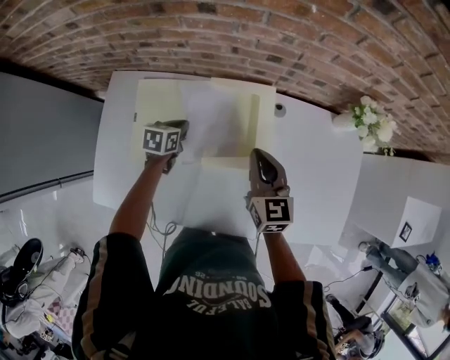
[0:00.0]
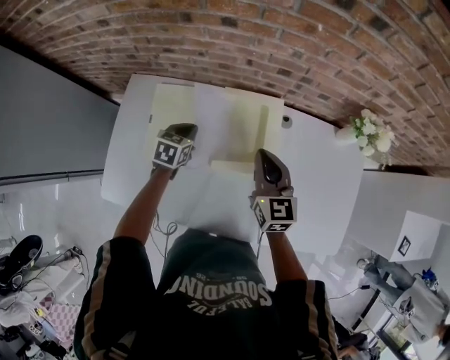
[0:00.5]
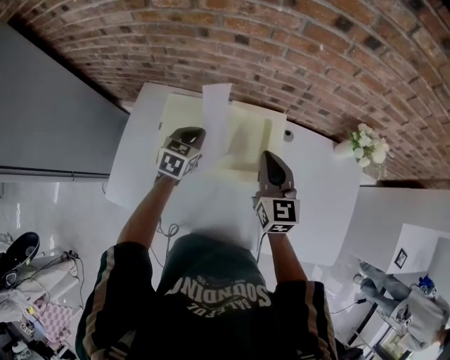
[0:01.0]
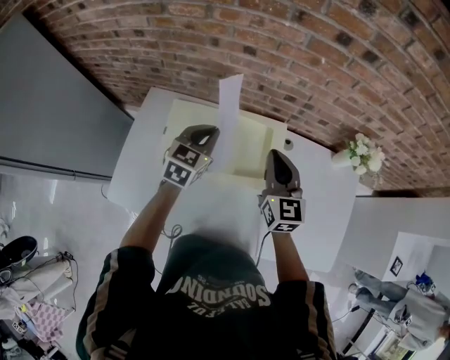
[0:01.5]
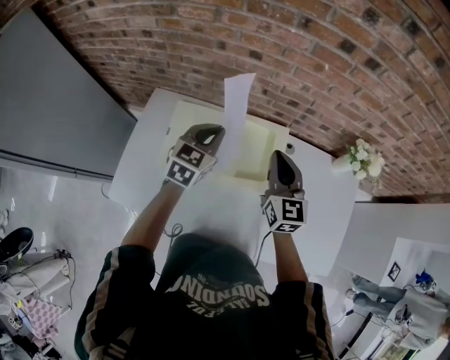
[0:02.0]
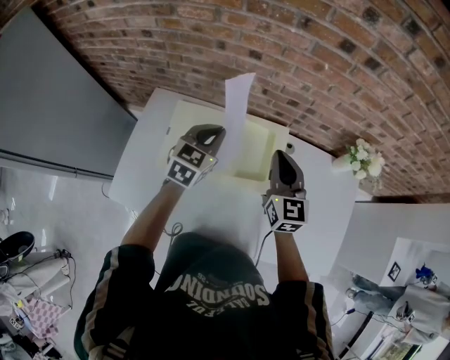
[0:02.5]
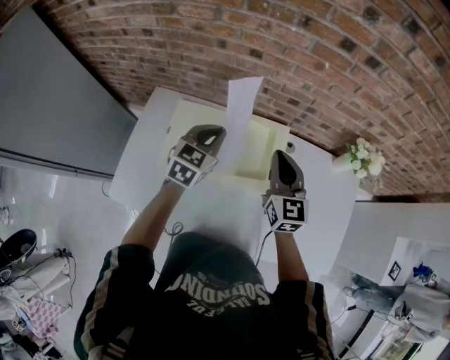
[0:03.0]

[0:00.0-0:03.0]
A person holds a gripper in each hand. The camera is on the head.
0:00.0 to 0:01.5: The left gripper shifts some 20 cm upward, and turns by approximately 30 degrees, while the right gripper travels upward by approximately 10 cm.
0:01.5 to 0:03.0: The grippers stay close to where they were, moving slightly.

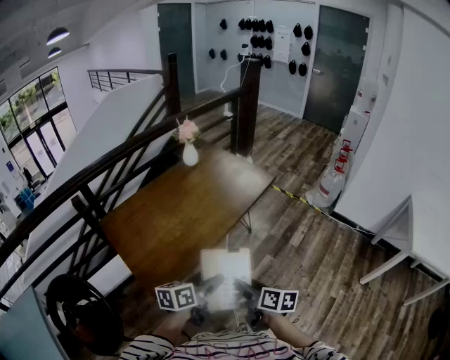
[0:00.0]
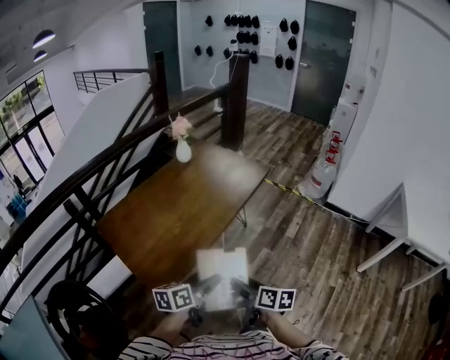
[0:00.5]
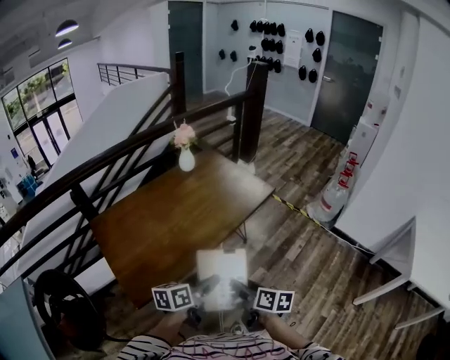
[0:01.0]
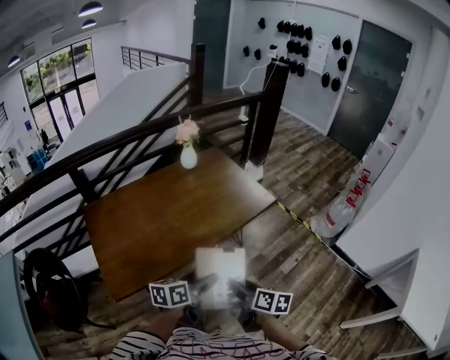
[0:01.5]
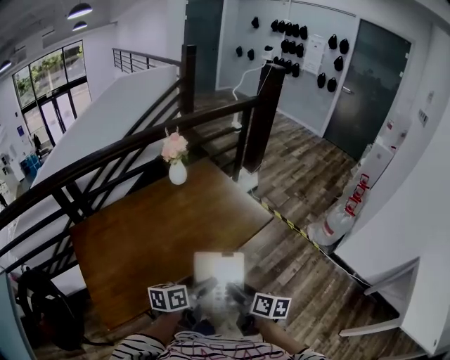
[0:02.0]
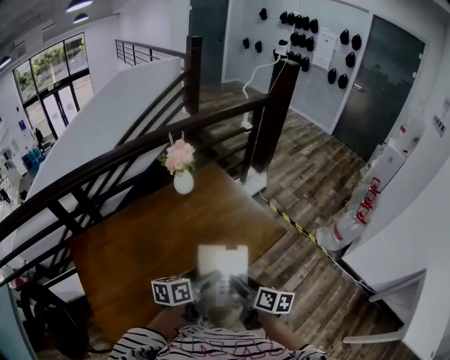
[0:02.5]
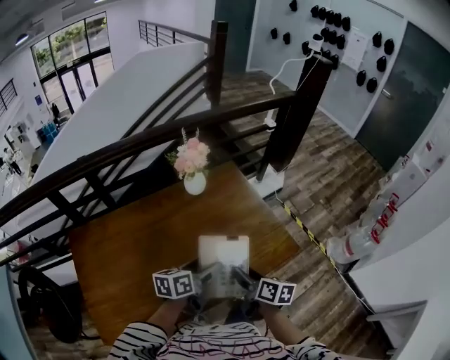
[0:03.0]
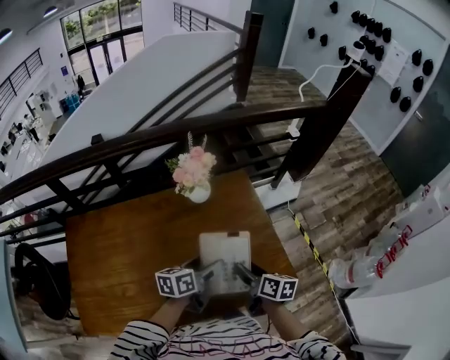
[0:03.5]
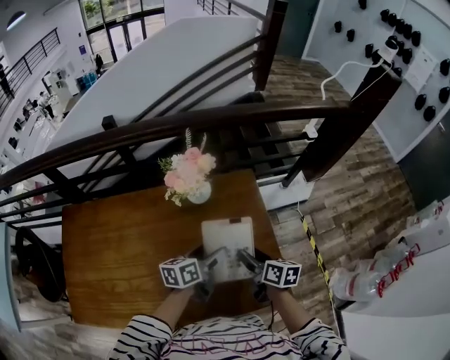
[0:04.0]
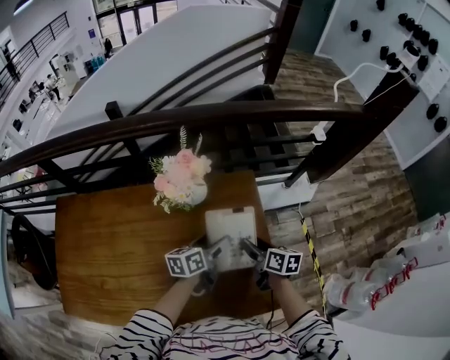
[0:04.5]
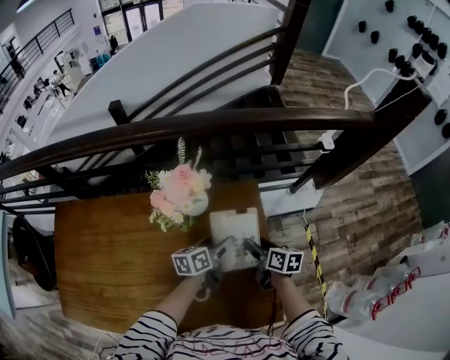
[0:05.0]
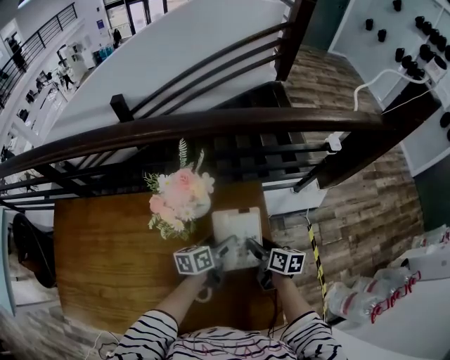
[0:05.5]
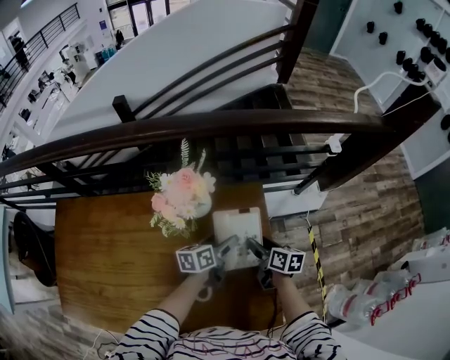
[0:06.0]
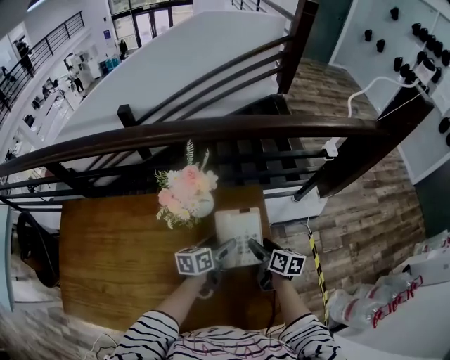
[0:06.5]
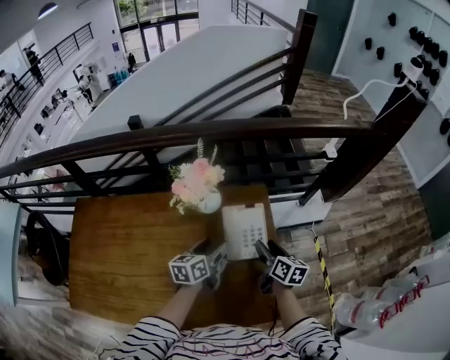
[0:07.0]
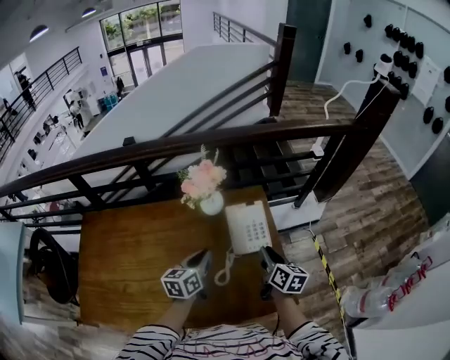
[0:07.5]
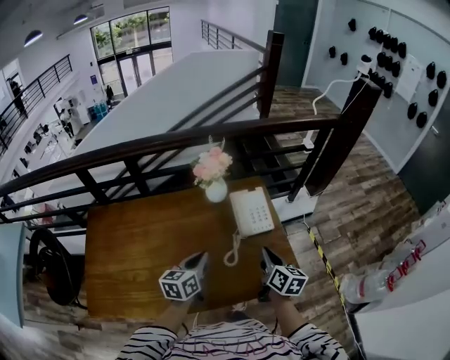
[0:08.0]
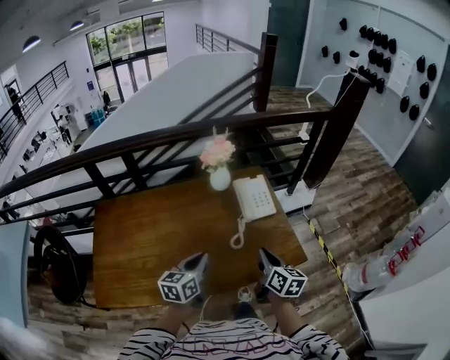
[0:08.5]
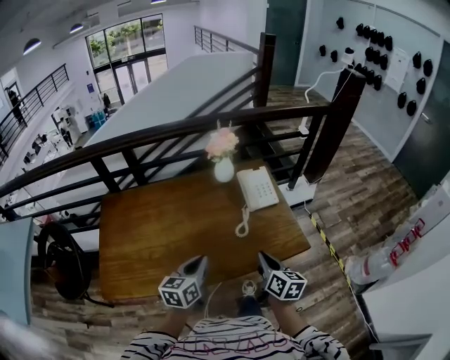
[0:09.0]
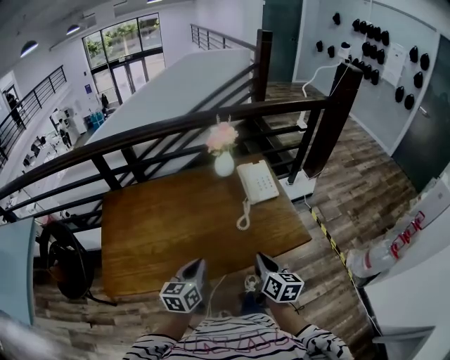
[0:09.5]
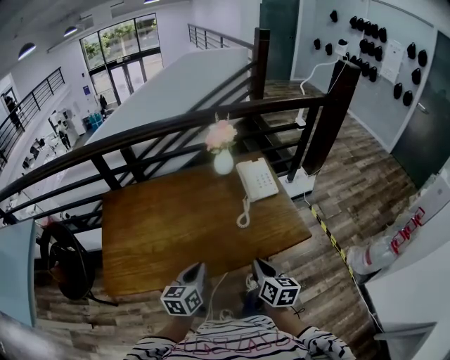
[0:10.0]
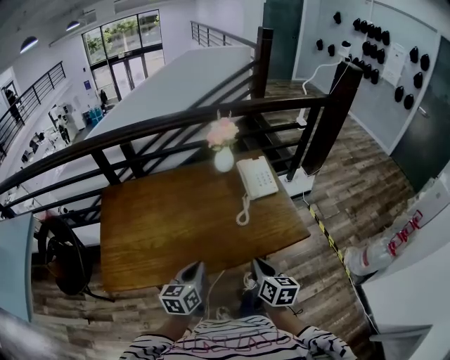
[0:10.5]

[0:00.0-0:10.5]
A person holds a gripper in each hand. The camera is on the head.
0:00.0 to 0:02.0: The two grippers go roughly 35 cm forward and to the right.
0:02.0 to 0:04.0: Both grippers are carried some 60 cm. The left gripper changes its angle by some 30 degrees. The right gripper swivels about 30 degrees.
0:04.0 to 0:06.5: The right gripper moves forward, some 15 cm. Meanwhile the left gripper shifts about 15 cm forward and downward.
0:06.5 to 0:08.5: The two grippers travel together, backward, approximately 50 cm. The left gripper turns by approximately 20 degrees, and closes its fingers. Meanwhile the right gripper changes its angle by some 20 degrees, and closes up.
0:08.5 to 0:10.5: Both grippers travel together backward, approximately 15 cm.

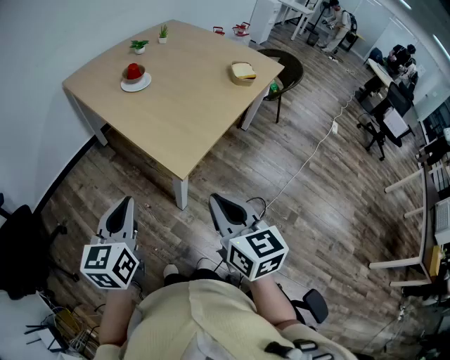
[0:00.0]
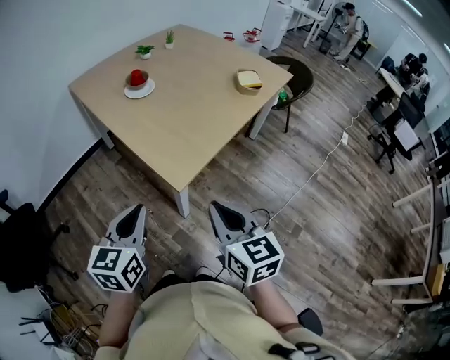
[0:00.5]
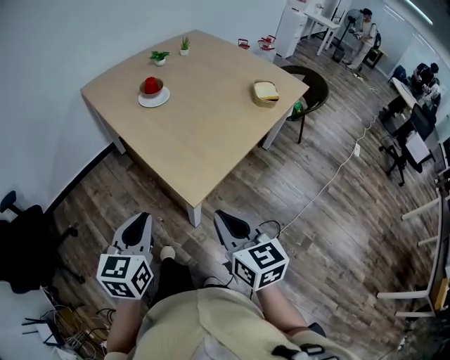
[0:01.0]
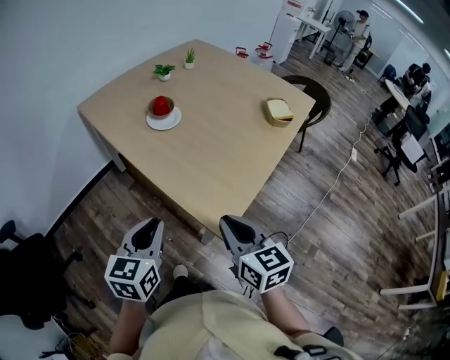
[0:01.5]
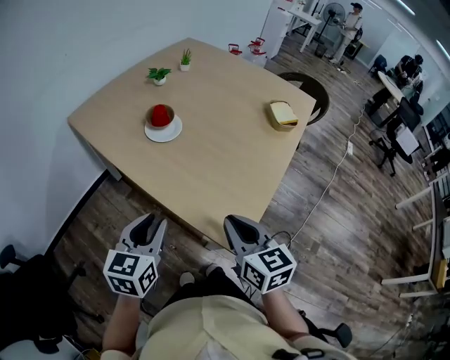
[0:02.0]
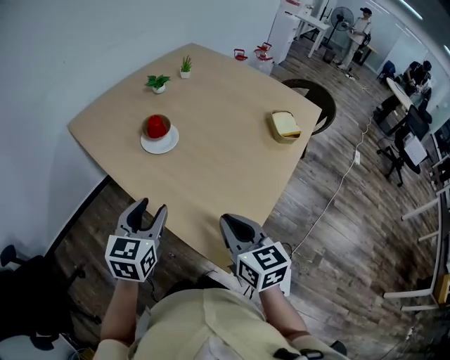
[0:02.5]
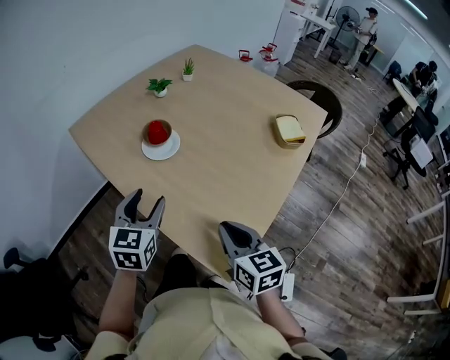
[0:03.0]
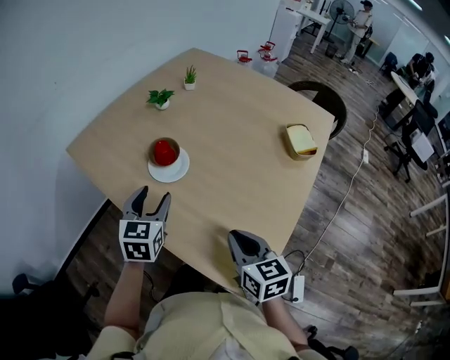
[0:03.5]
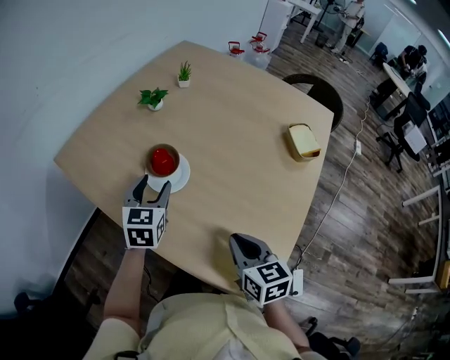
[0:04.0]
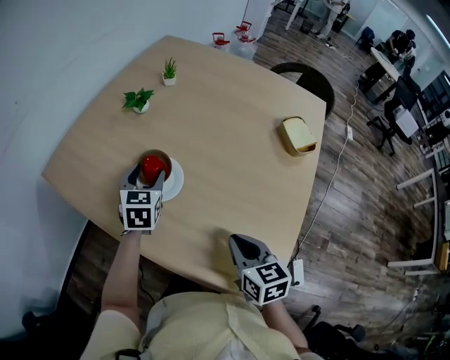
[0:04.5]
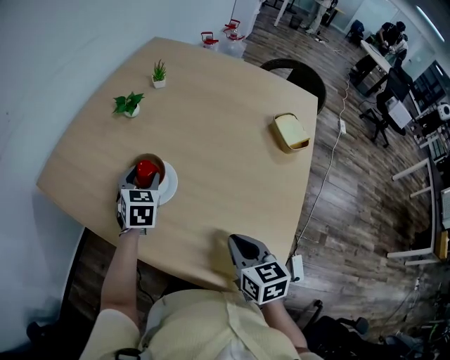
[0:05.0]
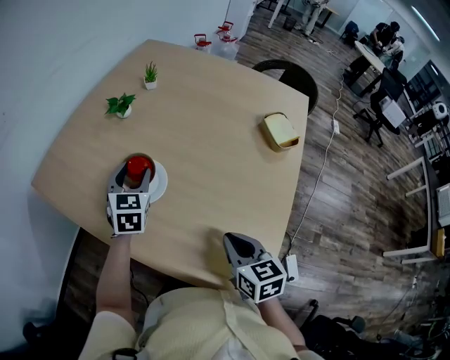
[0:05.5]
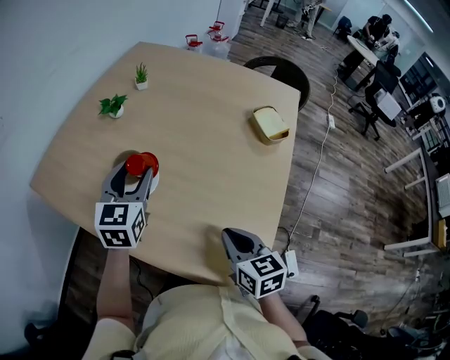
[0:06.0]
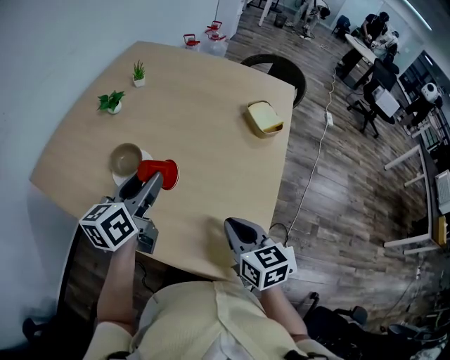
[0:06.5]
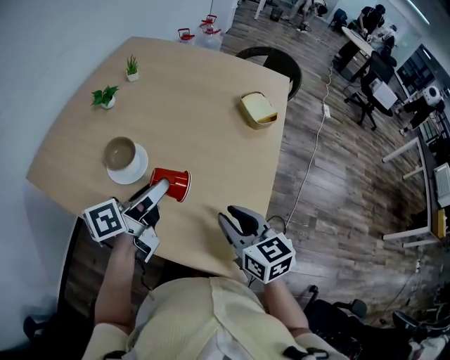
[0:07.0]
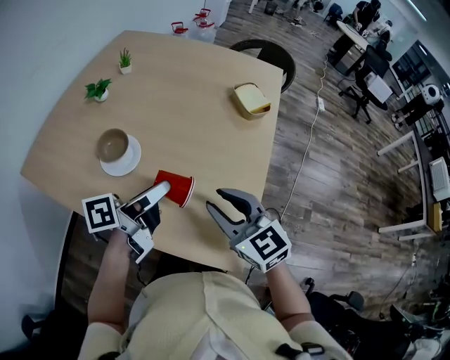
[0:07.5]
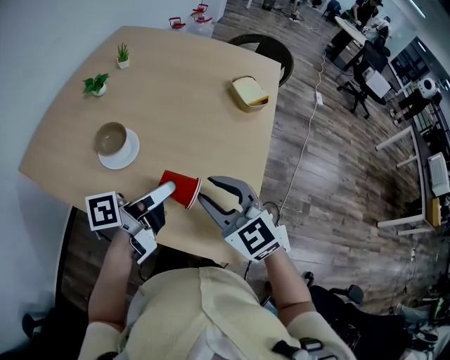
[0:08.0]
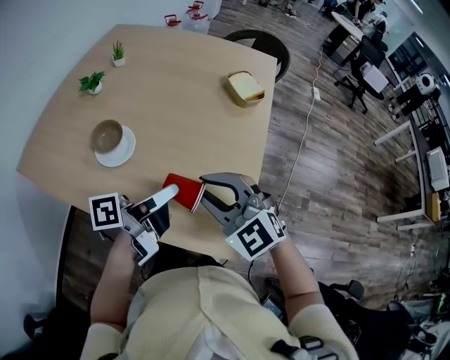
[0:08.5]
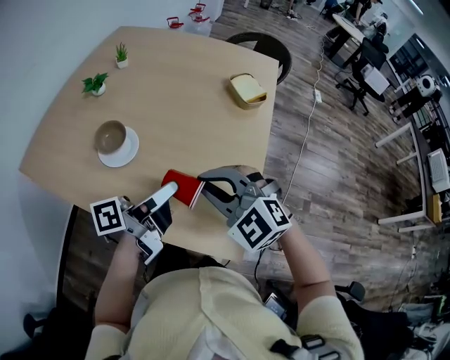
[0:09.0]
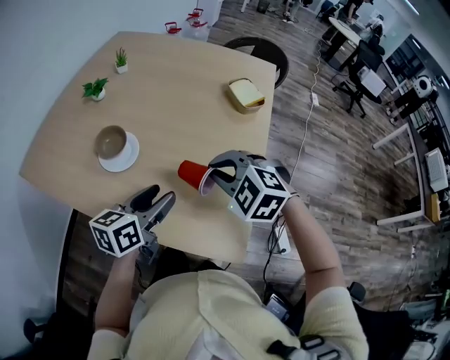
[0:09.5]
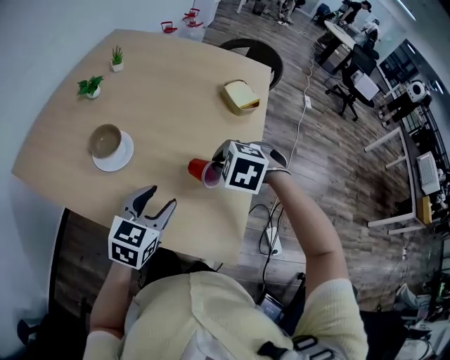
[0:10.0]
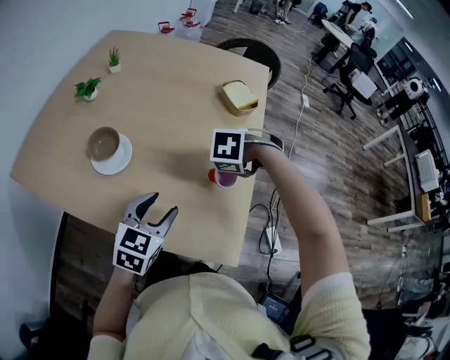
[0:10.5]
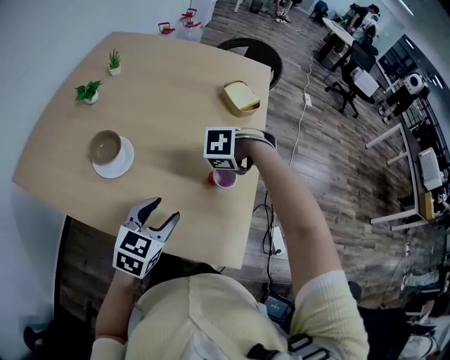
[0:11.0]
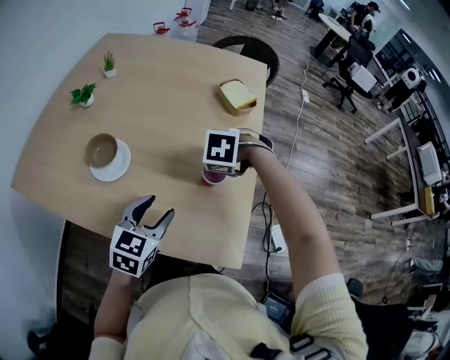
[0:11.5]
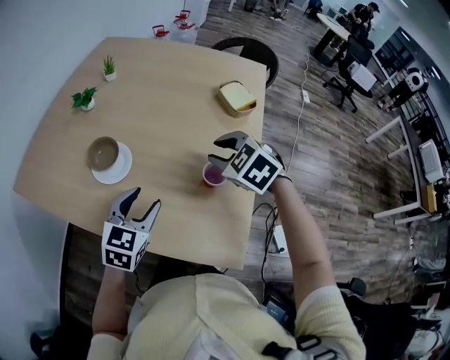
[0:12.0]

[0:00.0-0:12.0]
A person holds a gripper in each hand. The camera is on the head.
0:00.0 to 0:02.0: The grippers both shift forward by roughly 25 cm.
0:02.0 to 0:04.0: The left gripper moves forward, about 35 cm, and opens up. The right gripper goes about 20 cm forward.
0:04.0 to 0:06.0: The left gripper goes some 10 cm upward and to the right.
0:06.0 to 0:08.0: The left gripper heads backward and to the right, covering about 20 cm, and twists approximately 70 degrees counterclockwise, seen from behind; the right gripper shifts about 5 cm upward, turns by approximately 40 degrees, and opens.
0:08.0 to 0:10.0: The right gripper shifts roughly 10 cm forward and downward, tilts its fingers approximately 50 degrees downward, and closes. Meanwhile the left gripper rotates around the line of its fingers by approximately 60 degrees, clockwise from behind.
0:10.0 to 0:12.0: The right gripper moves some 5 cm, swivels about 30 degrees, and opens its fingers, while the left gripper shifts by some 5 cm.

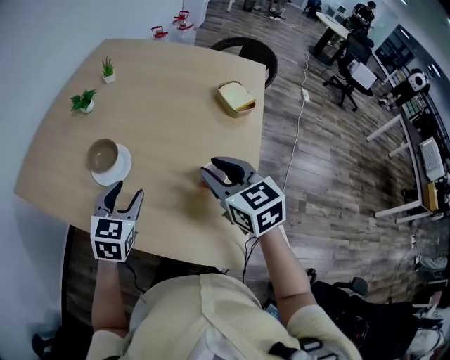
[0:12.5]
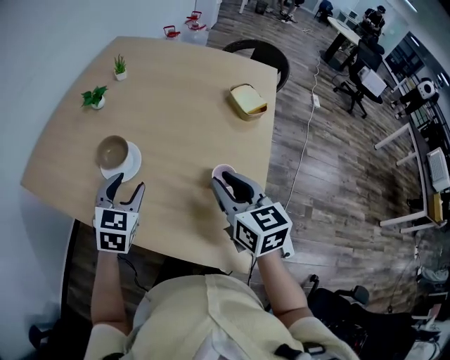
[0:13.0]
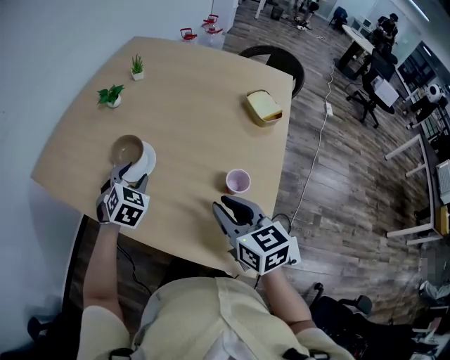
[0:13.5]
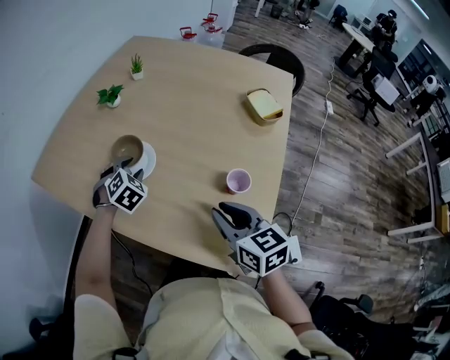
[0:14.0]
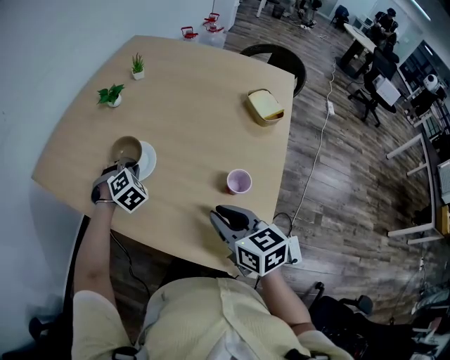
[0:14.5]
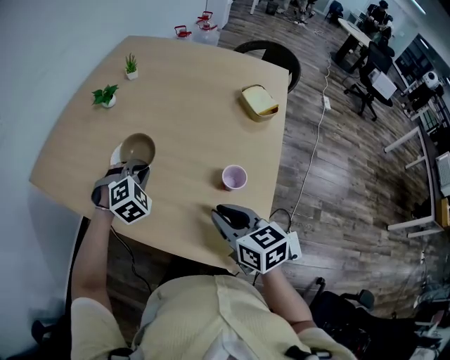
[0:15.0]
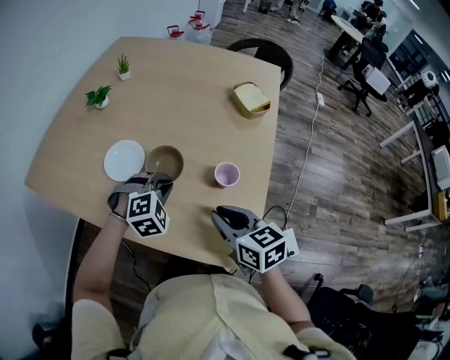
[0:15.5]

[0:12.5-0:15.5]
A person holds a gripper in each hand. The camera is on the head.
0:12.5 to 0:14.0: The right gripper moves backward, downward and to the left, approximately 10 cm. Meanwhile the left gripper moves forward, downward and to the left, some 15 cm, and rotates some 40 degrees.
0:14.0 to 0:15.5: The left gripper goes about 15 cm to the right and backward, rotates approximately 40 degrees, and closes.
